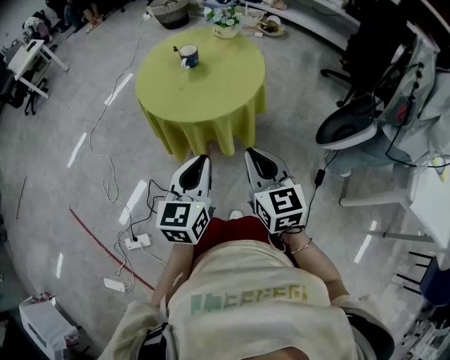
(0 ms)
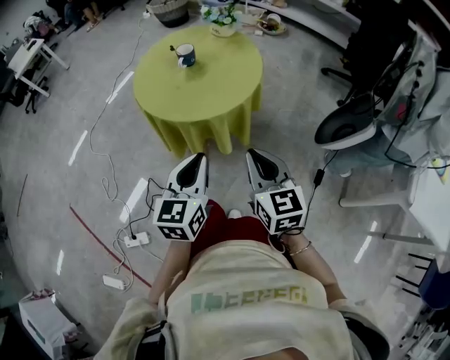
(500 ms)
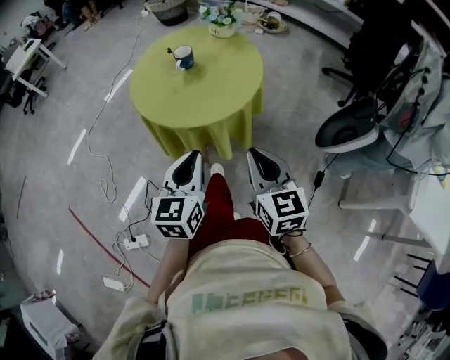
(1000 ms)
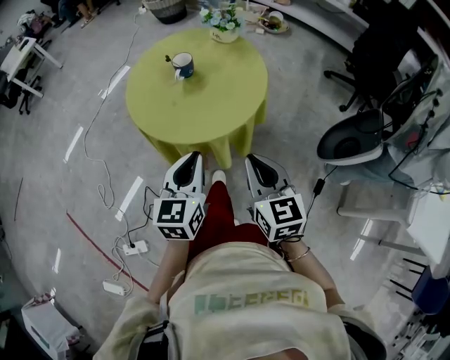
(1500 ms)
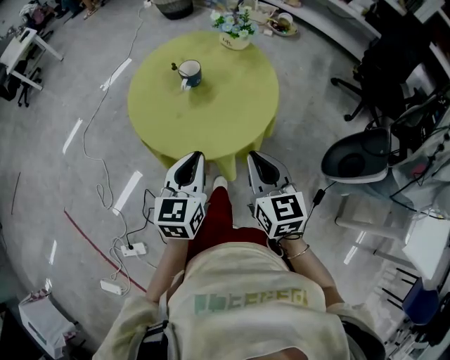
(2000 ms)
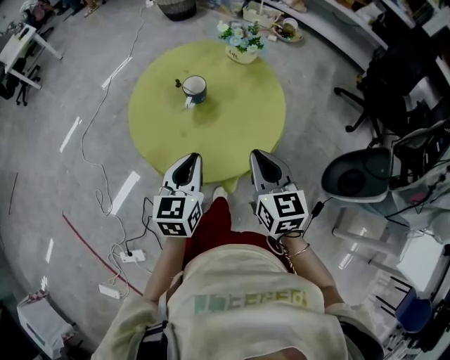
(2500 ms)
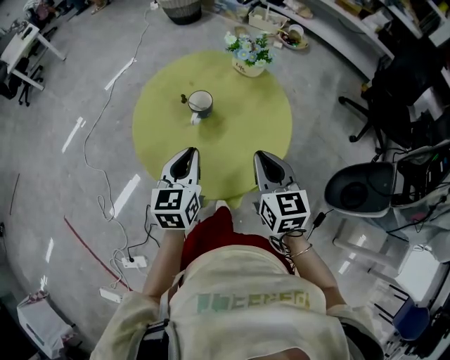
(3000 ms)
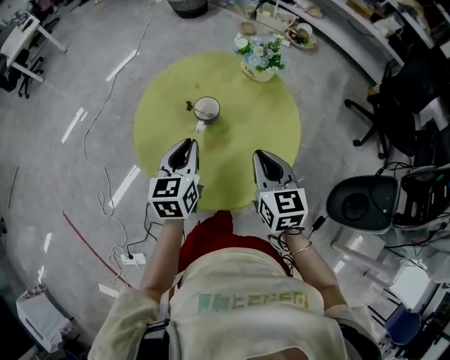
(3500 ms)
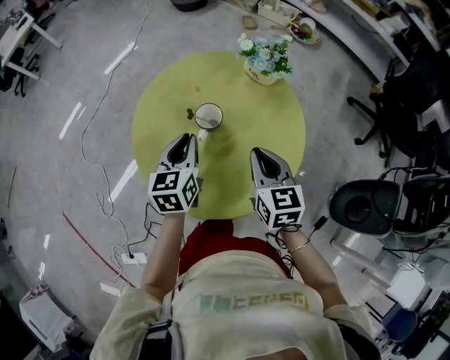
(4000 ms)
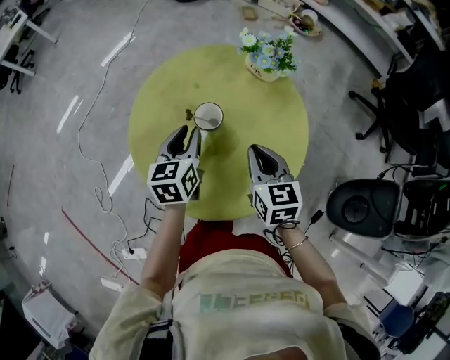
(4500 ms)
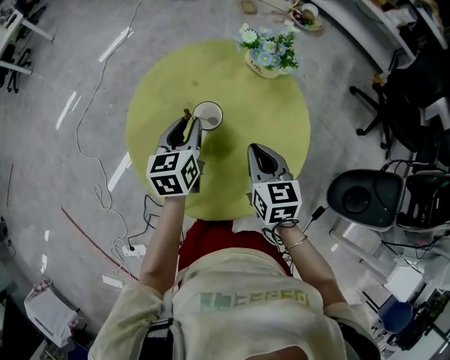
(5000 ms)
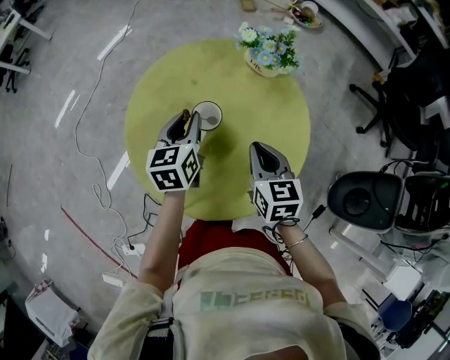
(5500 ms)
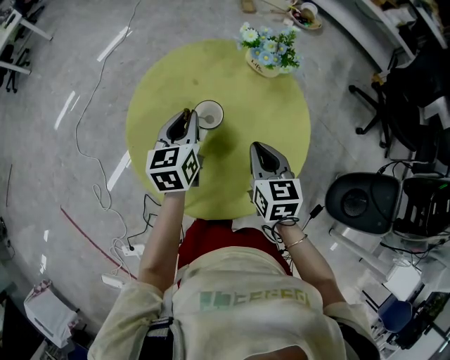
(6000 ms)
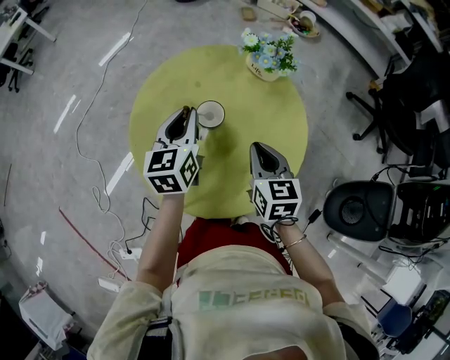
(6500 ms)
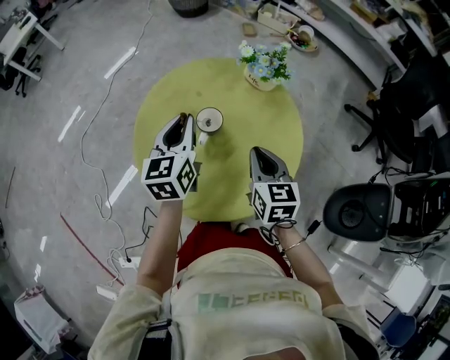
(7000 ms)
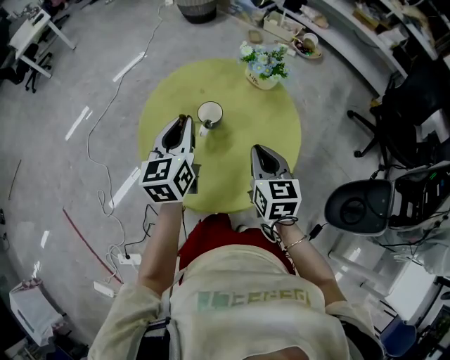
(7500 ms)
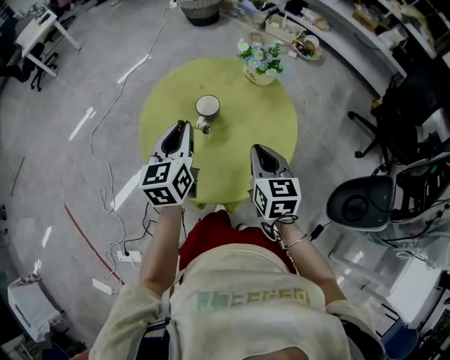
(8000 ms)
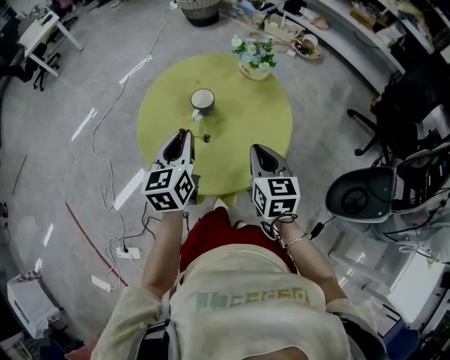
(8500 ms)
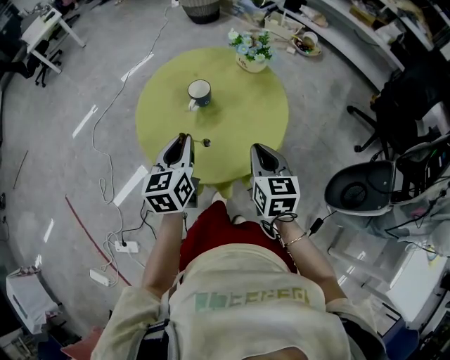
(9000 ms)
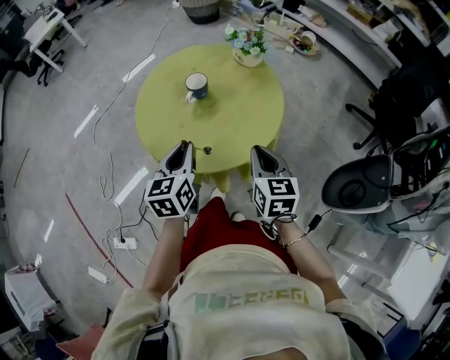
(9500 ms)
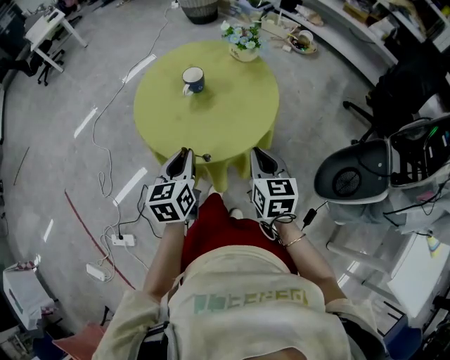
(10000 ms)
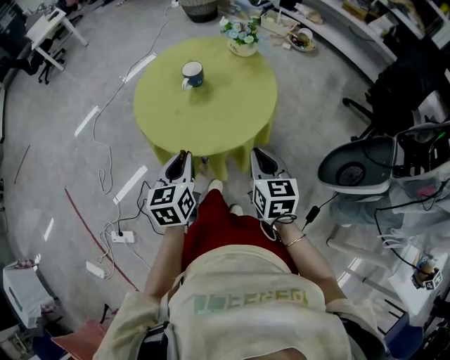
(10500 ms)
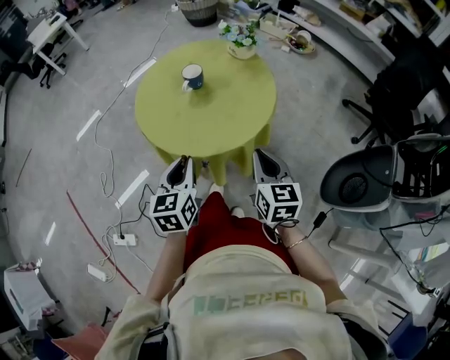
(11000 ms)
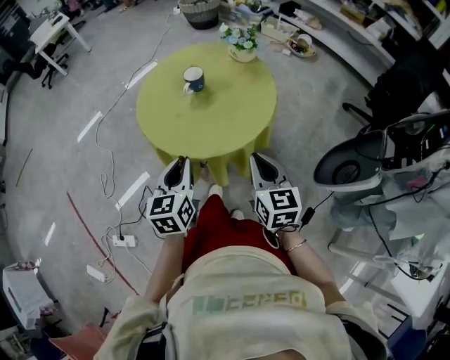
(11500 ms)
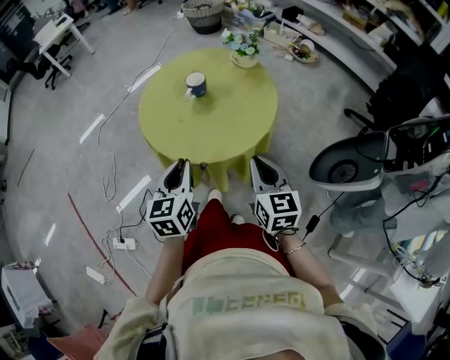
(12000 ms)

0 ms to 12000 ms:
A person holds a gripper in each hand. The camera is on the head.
0 ms to 2000 ms: Both grippers travel together forward, roughly 25 cm.
2000 ms to 4000 ms: Both grippers travel together forward, about 30 cm.
4000 ms to 6000 ms: The left gripper moves forward, some 5 cm. The right gripper shifts by about 5 cm.
6000 ms to 8000 ms: Both grippers move backward and upward, roughly 15 cm.
8000 ms to 10000 ms: Both grippers move backward, about 20 cm.
10000 ms to 12000 ms: Both grippers travel together backward, about 5 cm.

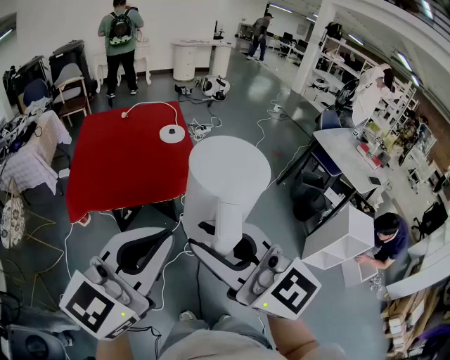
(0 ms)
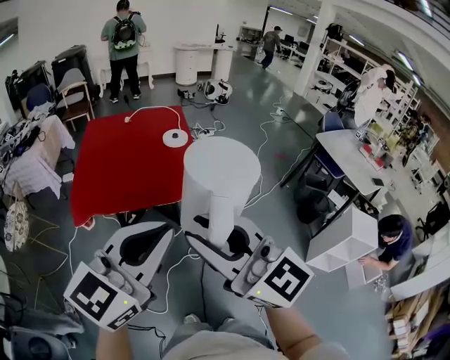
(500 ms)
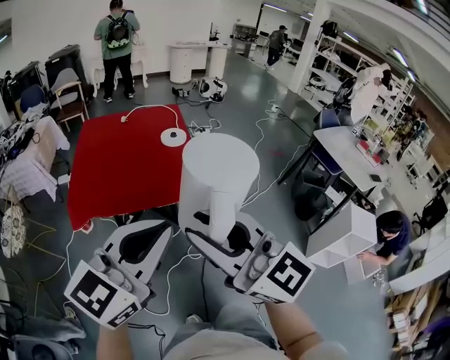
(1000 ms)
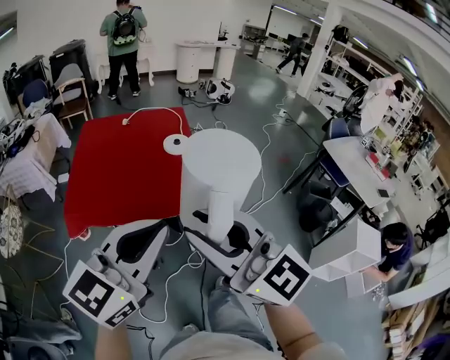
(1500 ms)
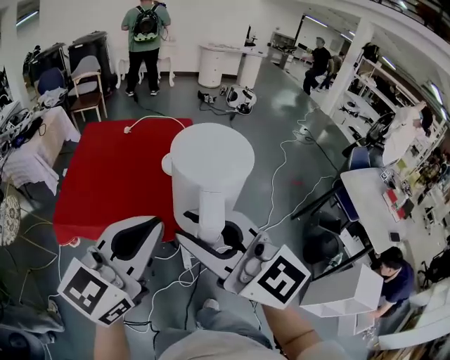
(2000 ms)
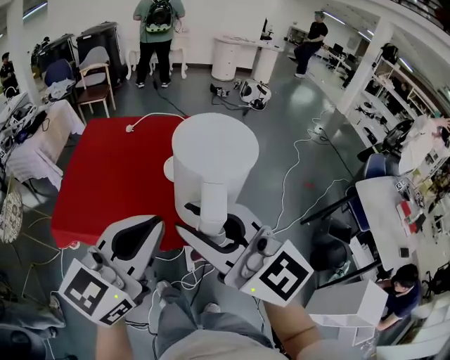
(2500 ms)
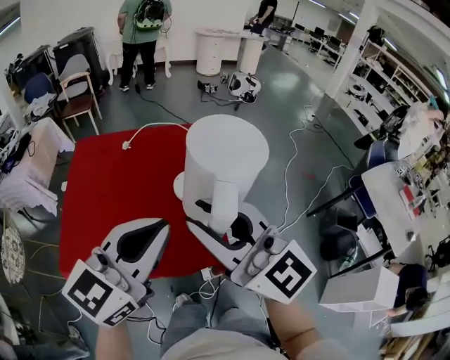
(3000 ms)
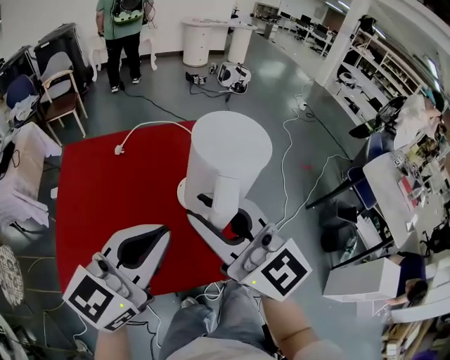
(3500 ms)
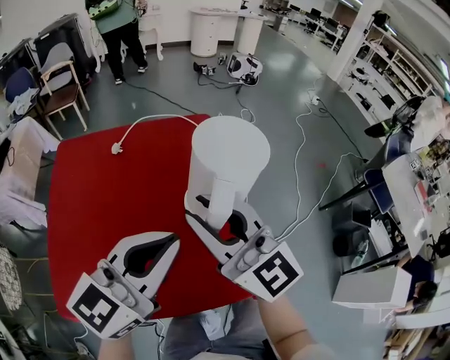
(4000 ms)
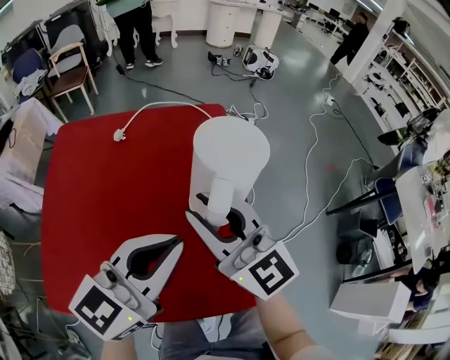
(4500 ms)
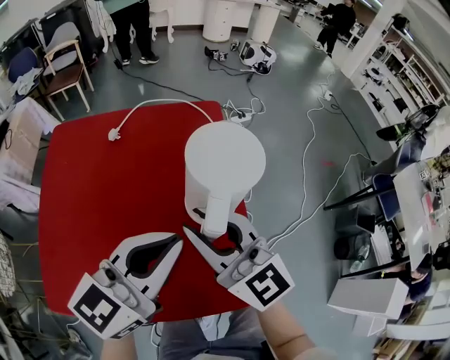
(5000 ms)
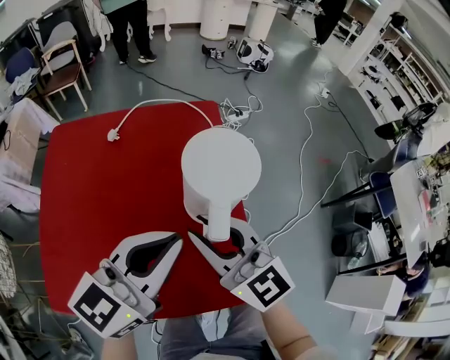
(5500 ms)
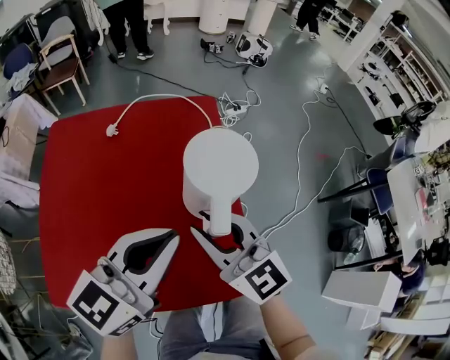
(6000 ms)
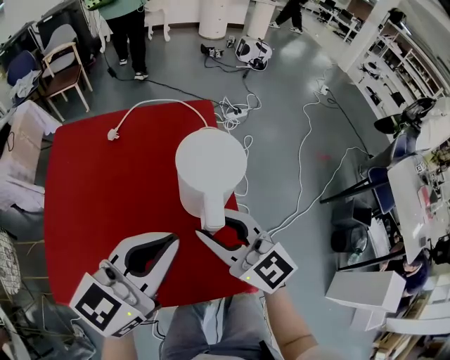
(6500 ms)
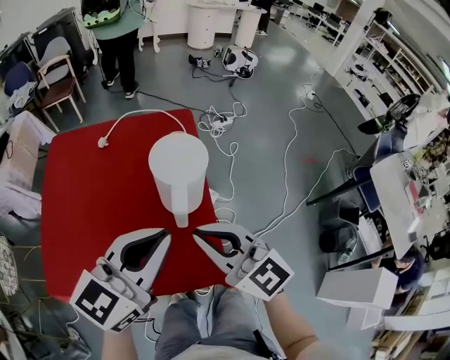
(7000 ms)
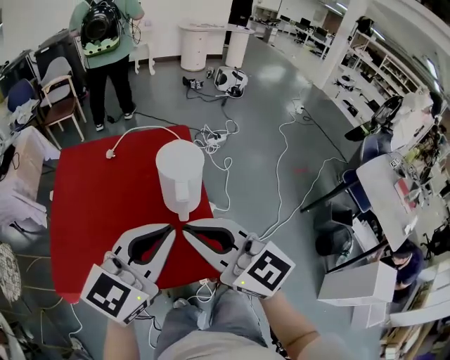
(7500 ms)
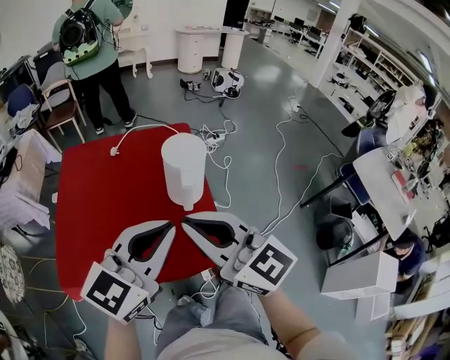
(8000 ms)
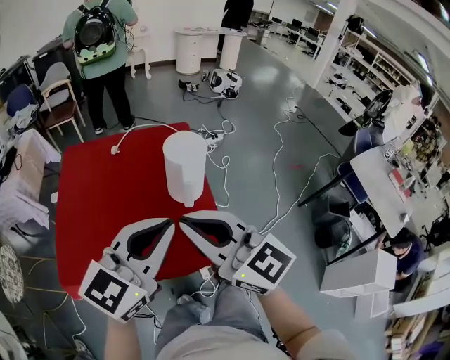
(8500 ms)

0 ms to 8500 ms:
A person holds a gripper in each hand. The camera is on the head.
0 ms to 2000 ms: The two grippers go some 25 cm forward.
2000 ms to 4000 ms: The left gripper heads forward and downward, covering approximately 35 cm. Meanwhile the right gripper is displaced forward by some 40 cm.
4000 ms to 6500 ms: The right gripper is displaced downward by some 10 cm.
6500 ms to 8500 ms: The left gripper heads backward and upward, covering roughly 15 cm, while the right gripper shifts some 25 cm upward and backward, and closes its fingers.

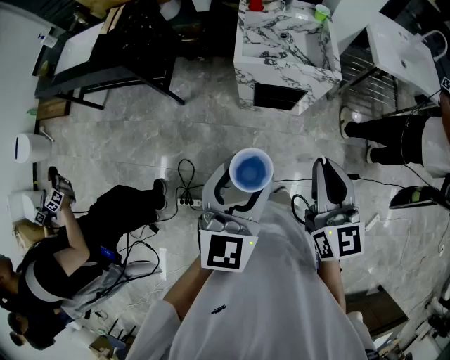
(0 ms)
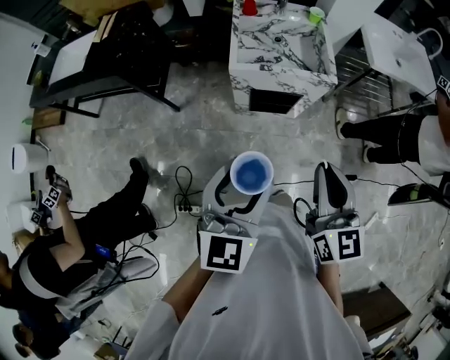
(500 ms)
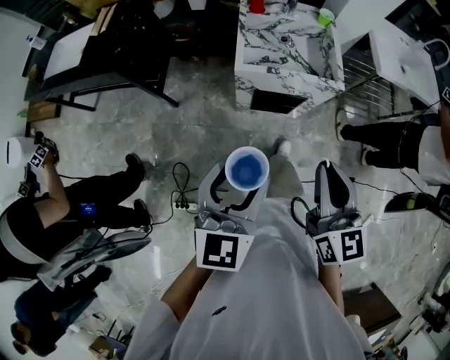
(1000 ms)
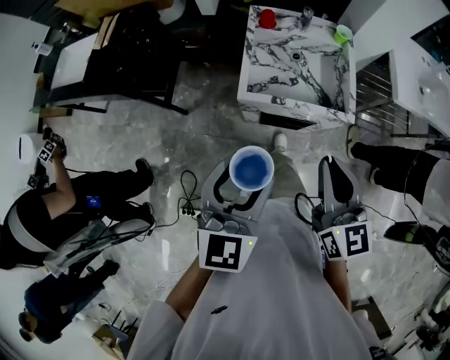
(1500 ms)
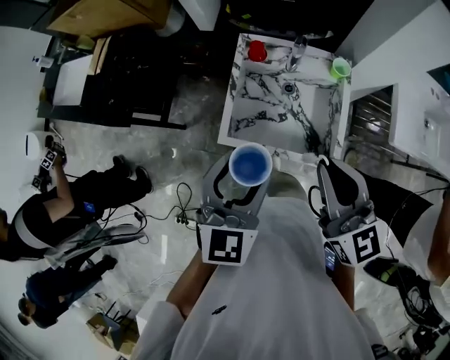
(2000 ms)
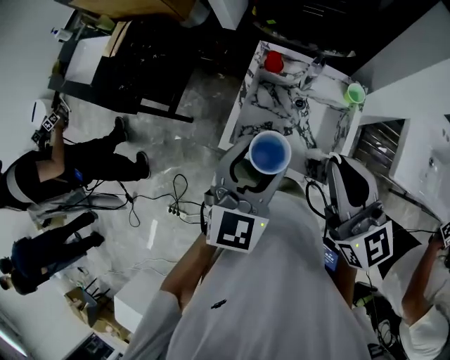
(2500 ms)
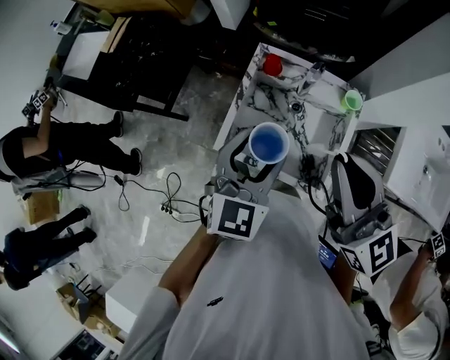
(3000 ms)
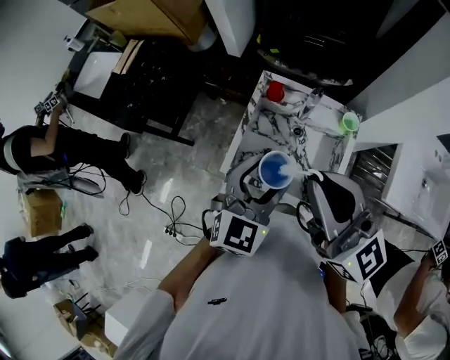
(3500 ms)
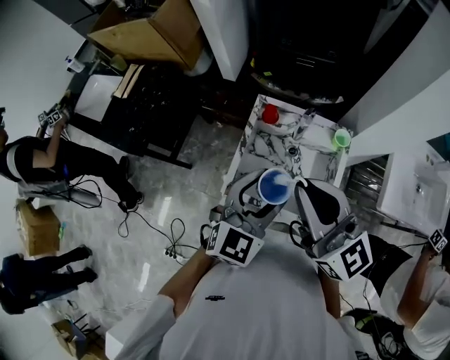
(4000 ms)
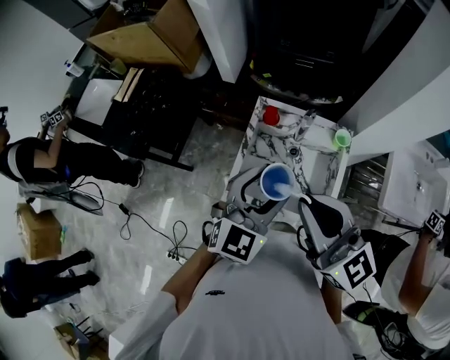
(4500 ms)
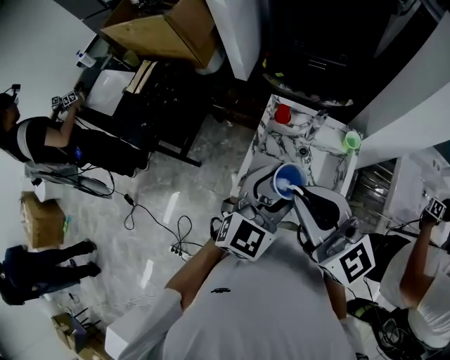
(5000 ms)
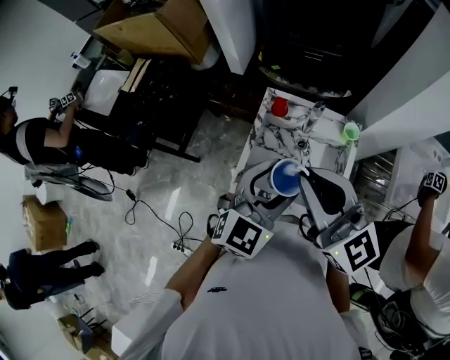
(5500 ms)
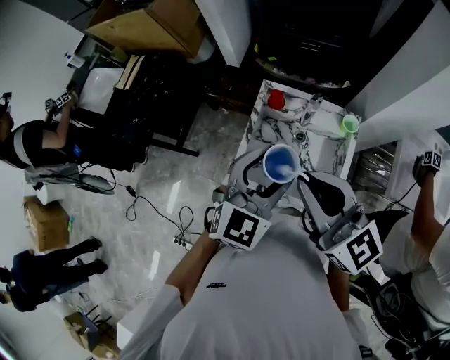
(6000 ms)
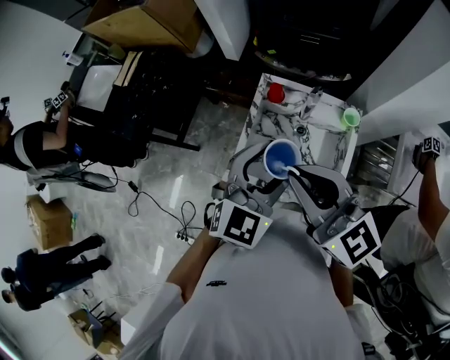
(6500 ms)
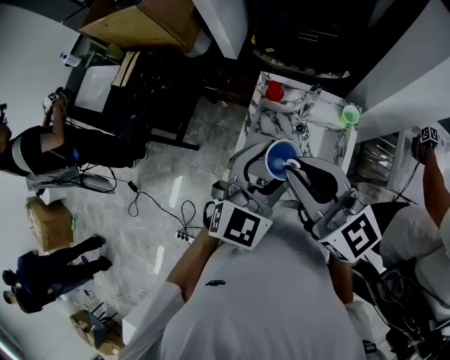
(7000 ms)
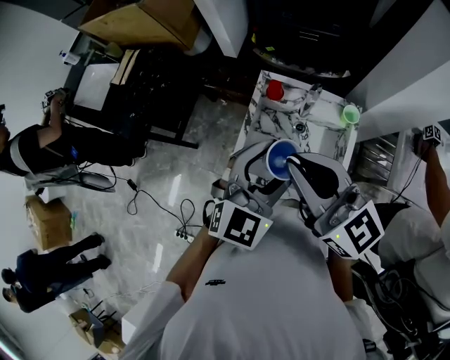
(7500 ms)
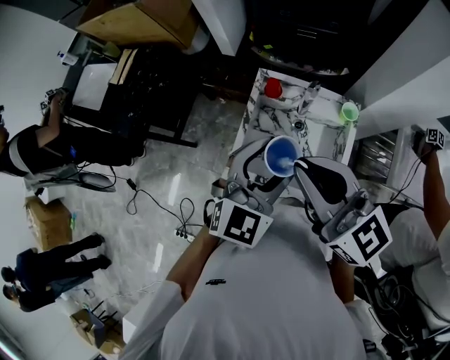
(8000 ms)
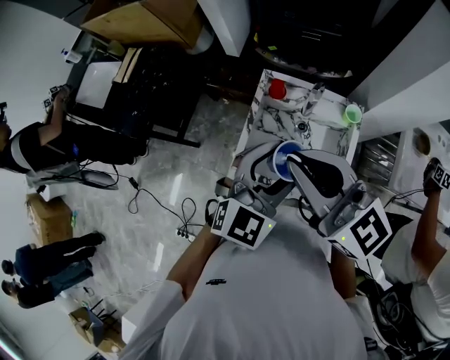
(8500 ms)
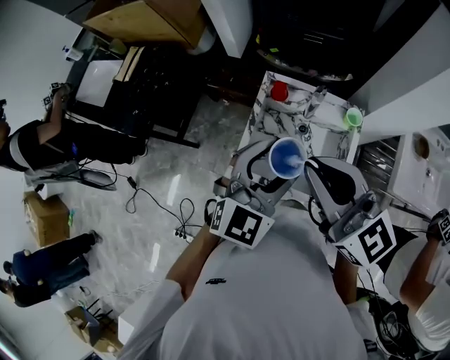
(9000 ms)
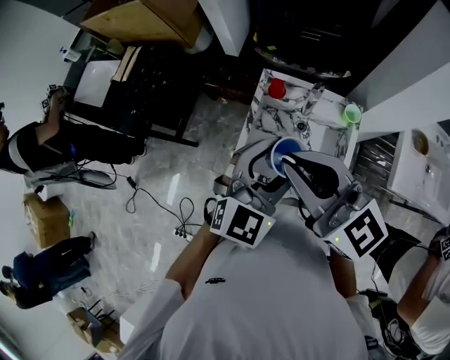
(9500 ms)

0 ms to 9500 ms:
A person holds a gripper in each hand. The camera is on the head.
0 ms to 2000 ms: The grippers both shift forward by some 40 cm. The right gripper turns by some 20 degrees.
2000 ms to 4000 ms: The right gripper shifts about 10 cm upward and forward, and rotates some 20 degrees, while the left gripper is displaced forward and to the right by some 10 cm.
4000 ms to 9500 ms: There are only small adjustments of the grippers.
